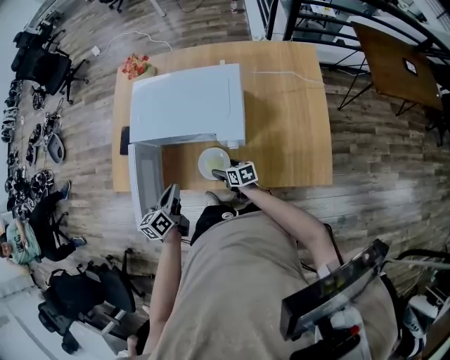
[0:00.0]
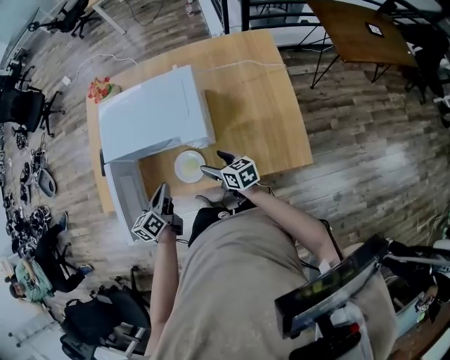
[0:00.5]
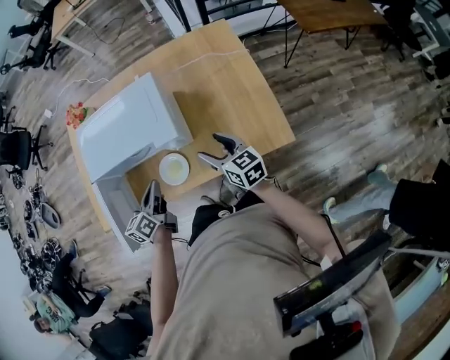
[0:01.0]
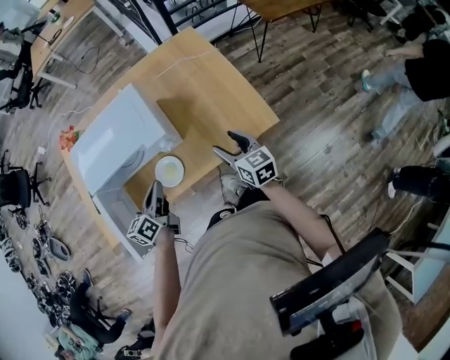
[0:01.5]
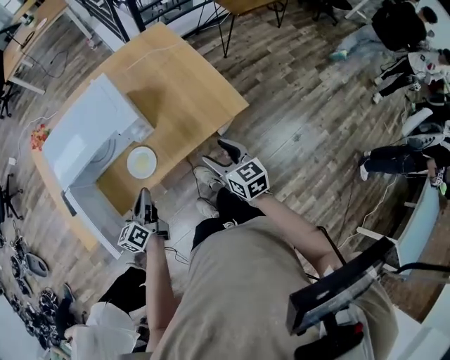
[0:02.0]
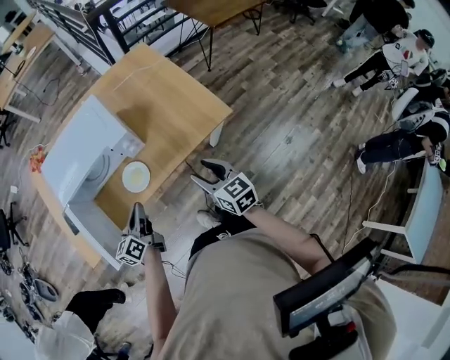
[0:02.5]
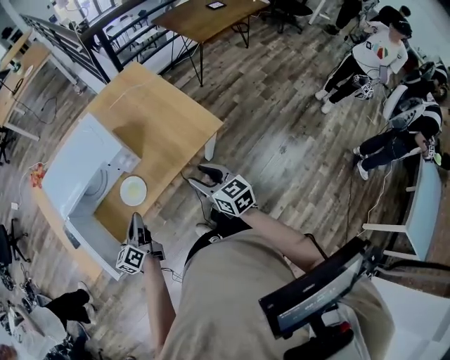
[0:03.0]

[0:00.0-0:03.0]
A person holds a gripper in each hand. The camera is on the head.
0:00.0 to 0:01.5: The right gripper ends up about 35 cm from where it was, and turns by about 40 degrees; the left gripper shifts by about 15 cm, and turns by roughly 30 degrees.
0:01.5 to 0:03.0: The right gripper heads backward, covering approximately 15 cm. The left gripper heads backward, covering about 10 cm.

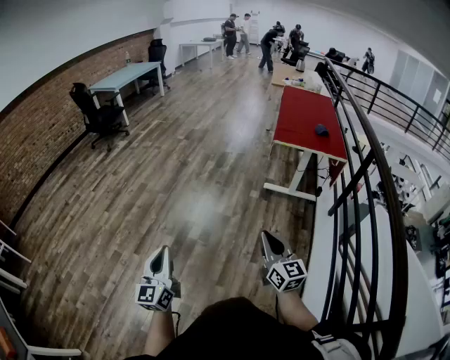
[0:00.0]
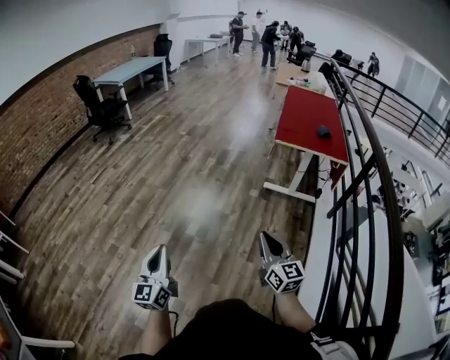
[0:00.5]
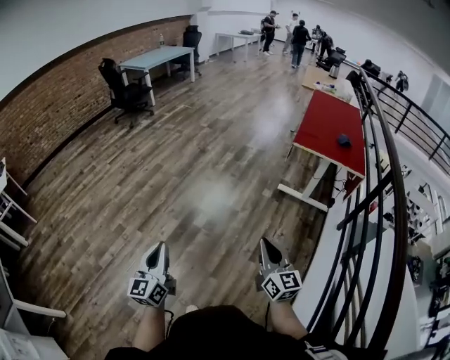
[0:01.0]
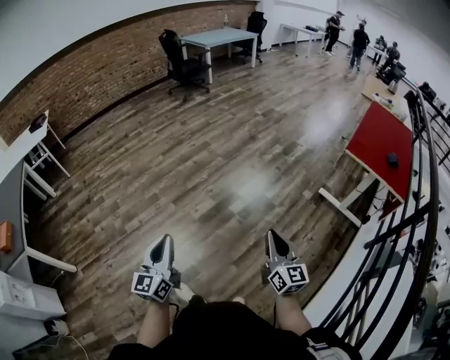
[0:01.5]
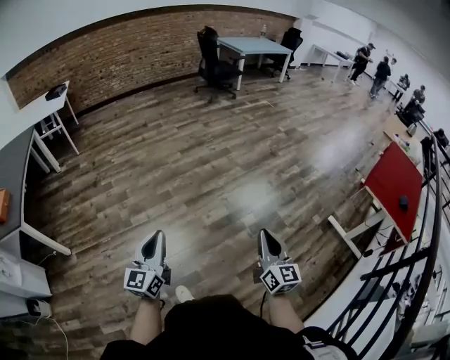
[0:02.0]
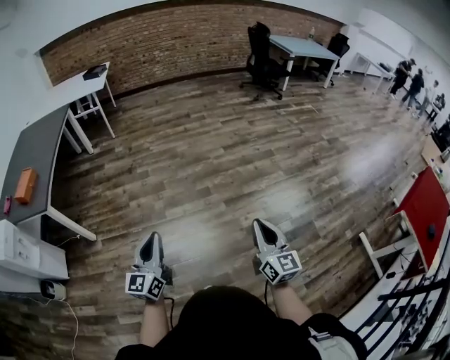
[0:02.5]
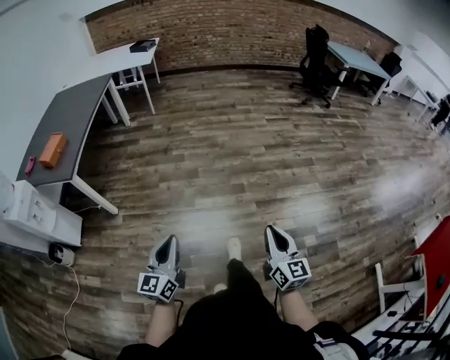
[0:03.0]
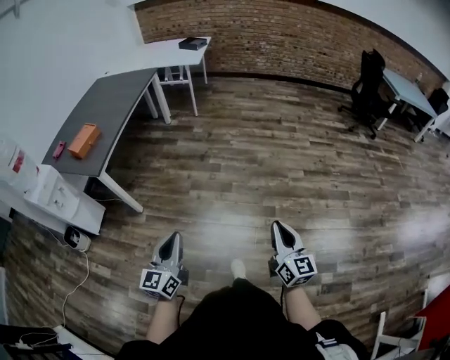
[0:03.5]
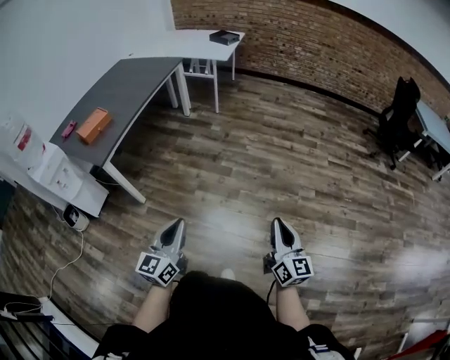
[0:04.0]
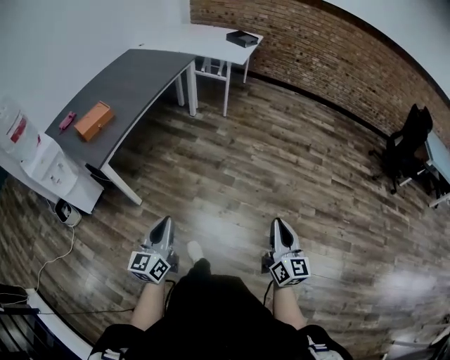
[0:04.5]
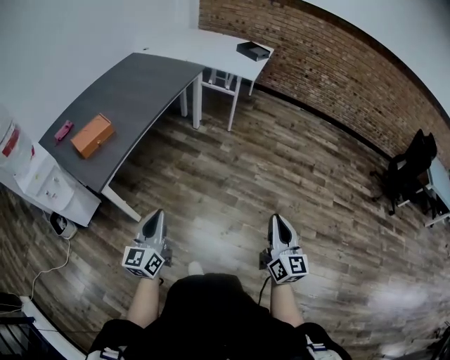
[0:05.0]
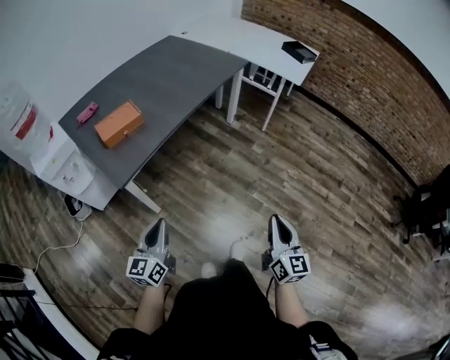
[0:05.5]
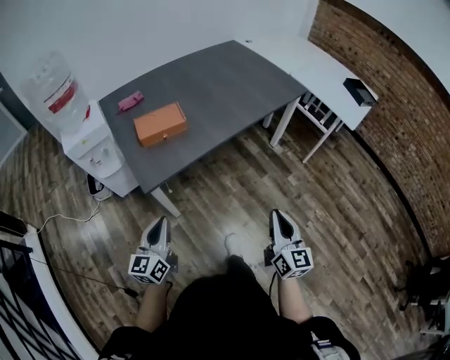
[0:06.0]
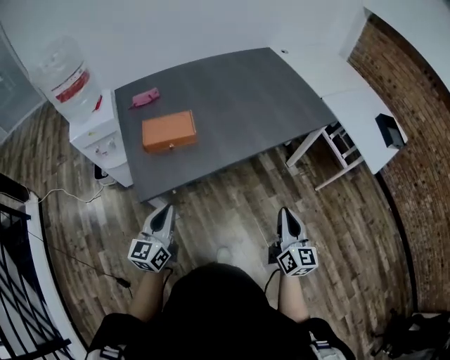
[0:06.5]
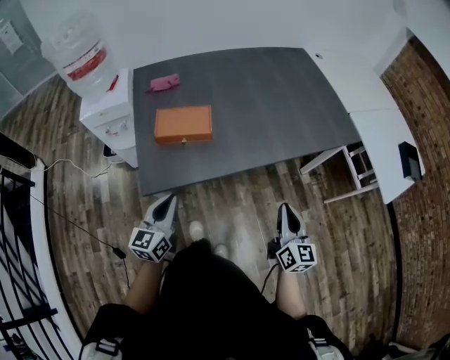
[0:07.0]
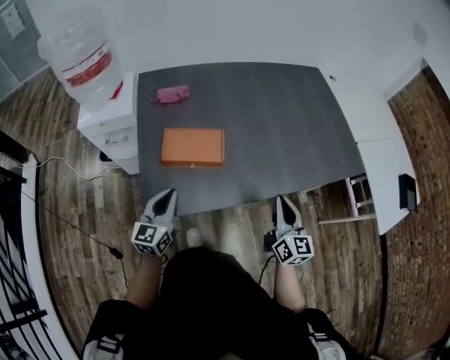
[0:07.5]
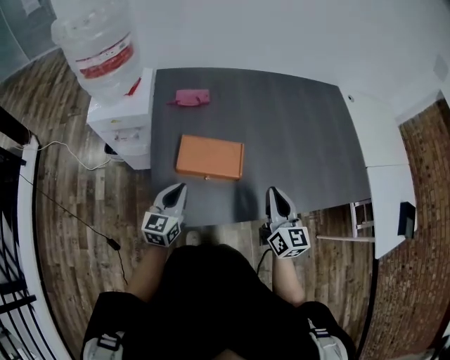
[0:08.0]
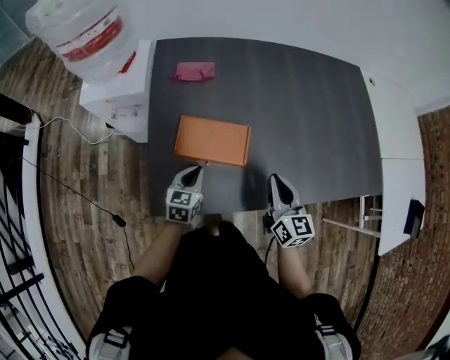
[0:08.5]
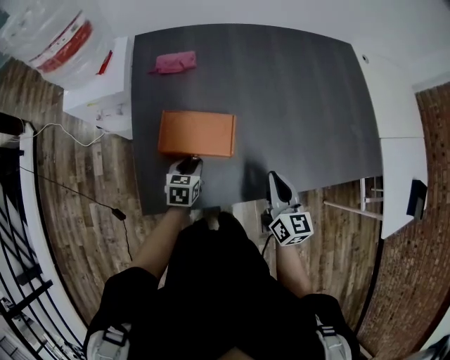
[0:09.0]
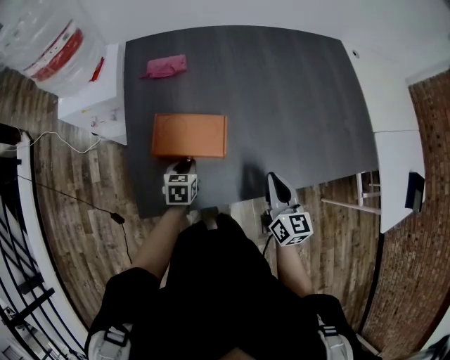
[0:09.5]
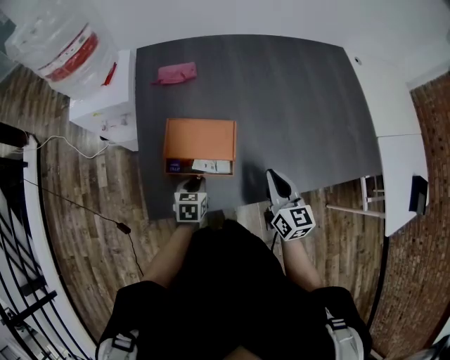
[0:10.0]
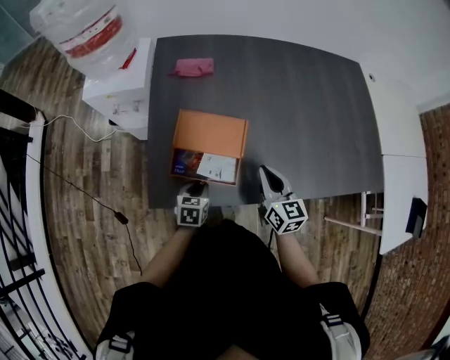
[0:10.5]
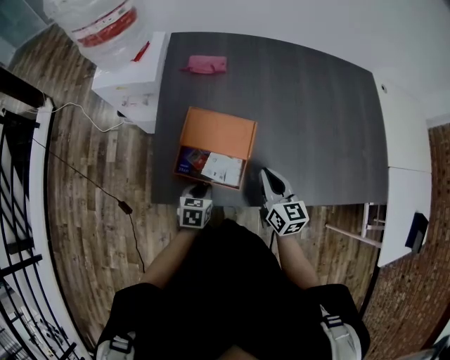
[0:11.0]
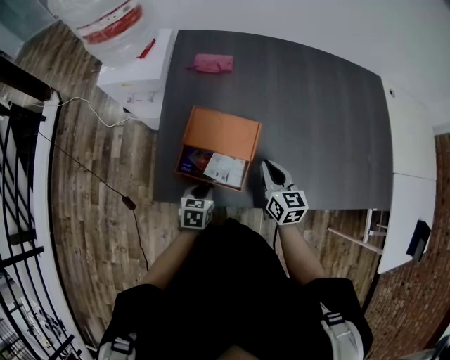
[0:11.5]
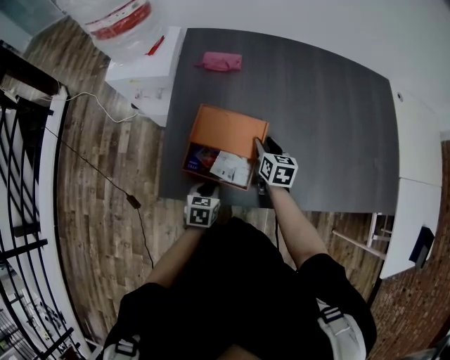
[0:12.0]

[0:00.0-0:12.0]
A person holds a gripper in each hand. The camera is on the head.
0:00.0 to 0:02.0: The right gripper moves some 25 cm, and rotates some 30 degrees; the left gripper shifts by about 25 cm, and changes its angle by approximately 30 degrees.
0:02.0 to 0:04.0: Both grippers are carried about 50 cm. The left gripper turns by roughly 40 degrees, while the right gripper swivels some 50 degrees.
0:04.0 to 0:06.0: The two grippers travel together, about 50 cm. The right gripper swivels about 40 degrees. The left gripper changes its angle by approximately 40 degrees.
0:06.0 to 0:08.0: The left gripper changes place by some 30 cm, and rotates roughly 20 degrees. The right gripper shifts by some 40 cm, and rotates some 30 degrees.
0:08.0 to 0:10.0: The right gripper travels downward by about 5 cm. Meanwhile the left gripper goes roughly 15 cm downward and to the right, and angles its fingers downward, by about 30 degrees.
0:10.0 to 0:12.0: The right gripper moves forward, downward and to the left, approximately 20 cm, swivels approximately 20 degrees, and opens up.

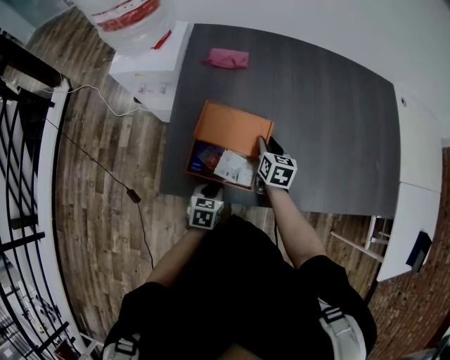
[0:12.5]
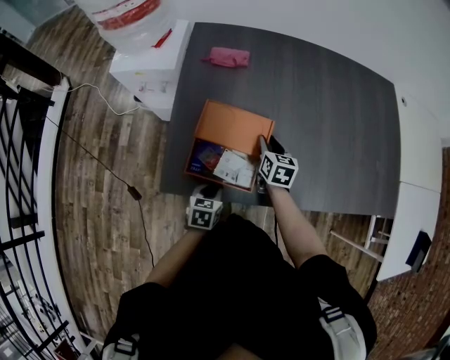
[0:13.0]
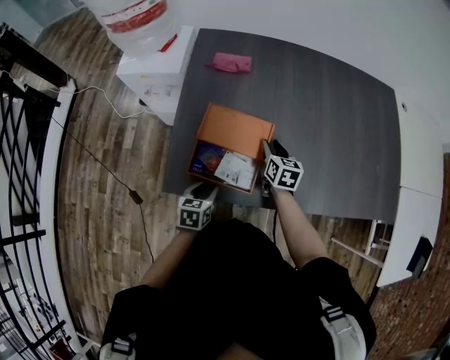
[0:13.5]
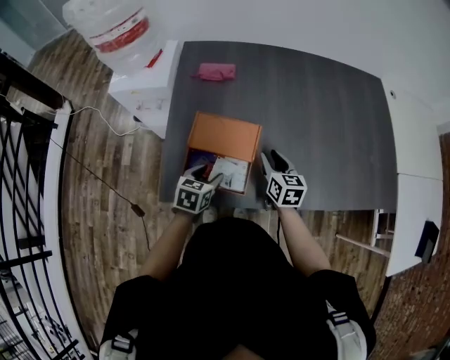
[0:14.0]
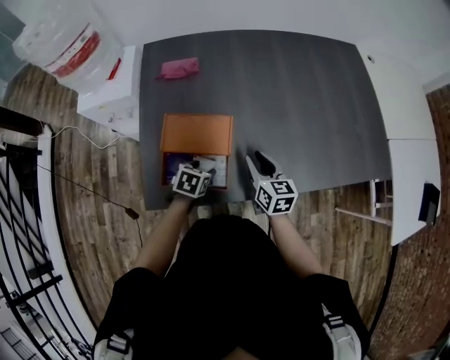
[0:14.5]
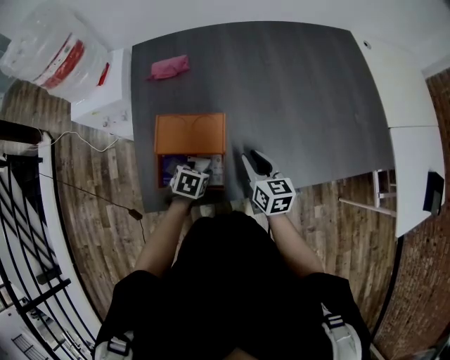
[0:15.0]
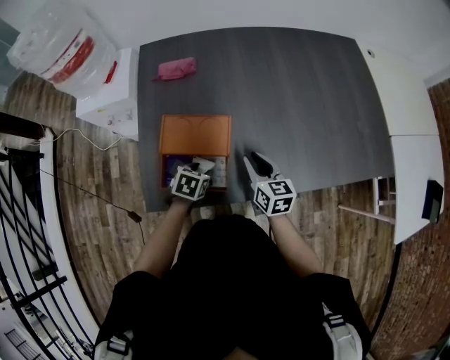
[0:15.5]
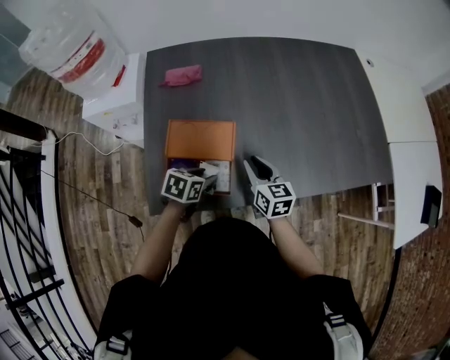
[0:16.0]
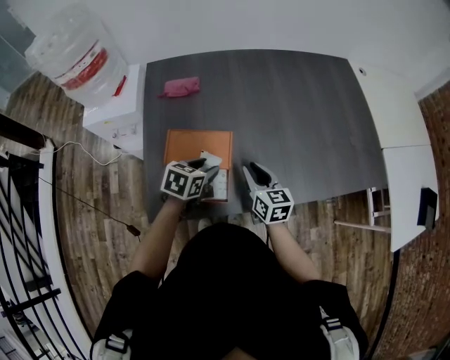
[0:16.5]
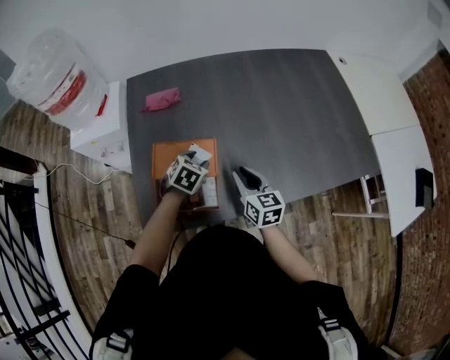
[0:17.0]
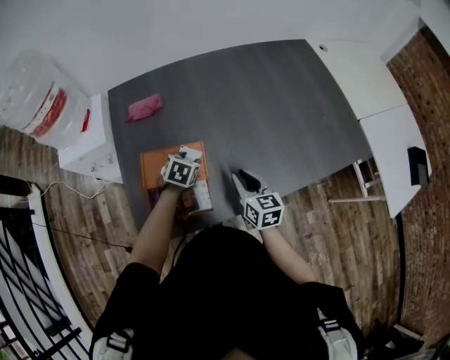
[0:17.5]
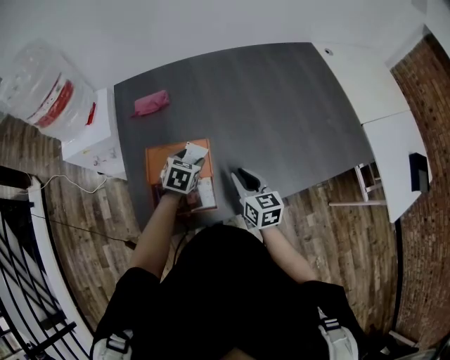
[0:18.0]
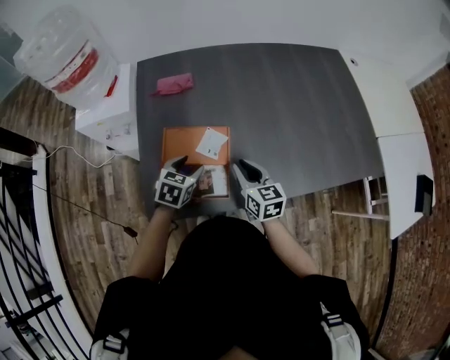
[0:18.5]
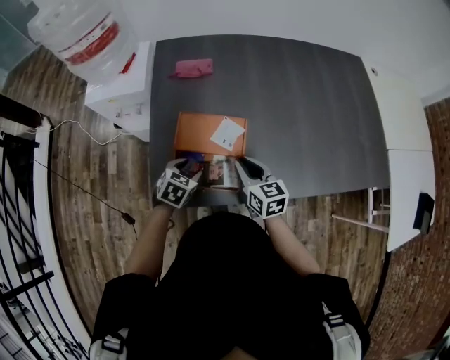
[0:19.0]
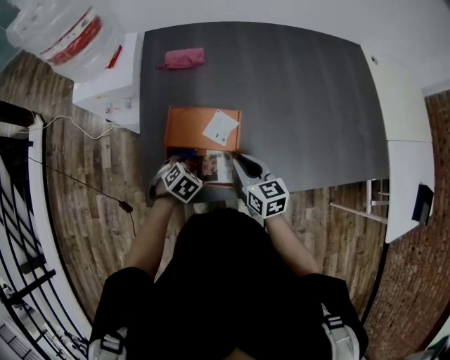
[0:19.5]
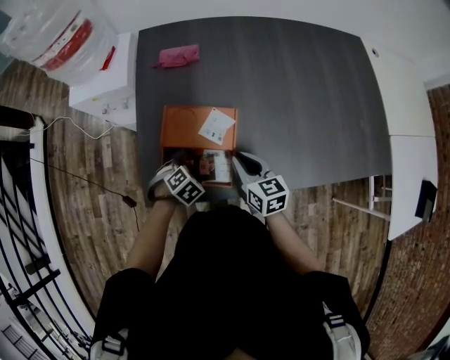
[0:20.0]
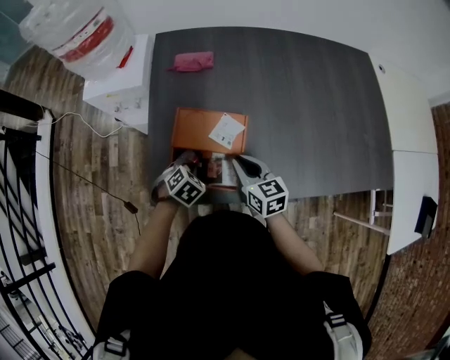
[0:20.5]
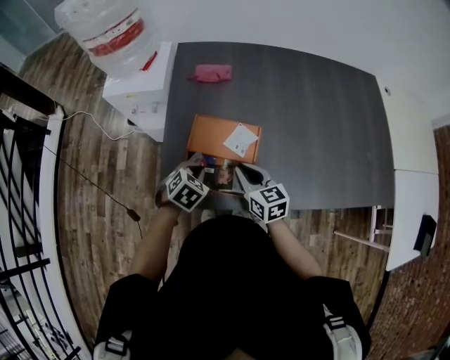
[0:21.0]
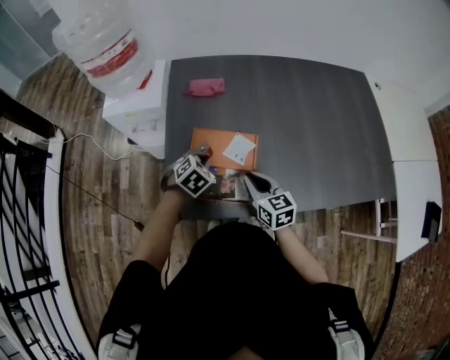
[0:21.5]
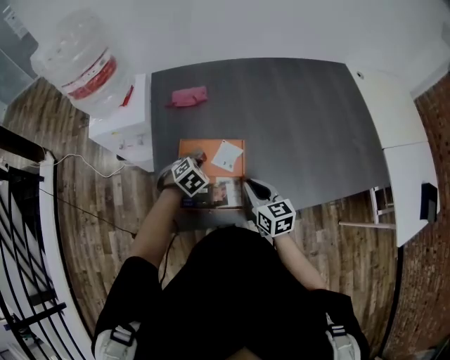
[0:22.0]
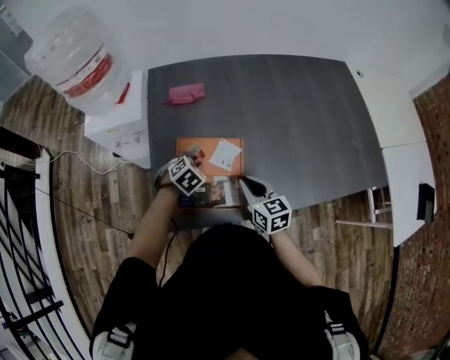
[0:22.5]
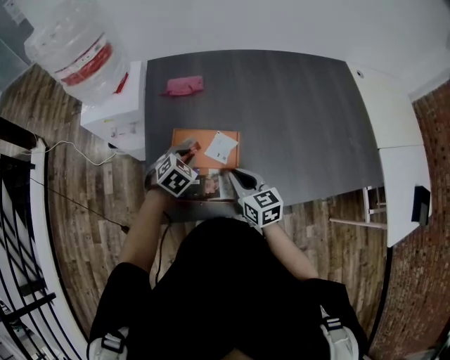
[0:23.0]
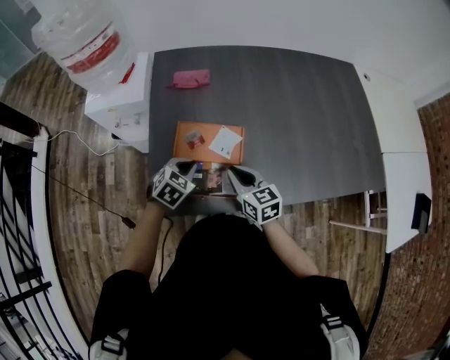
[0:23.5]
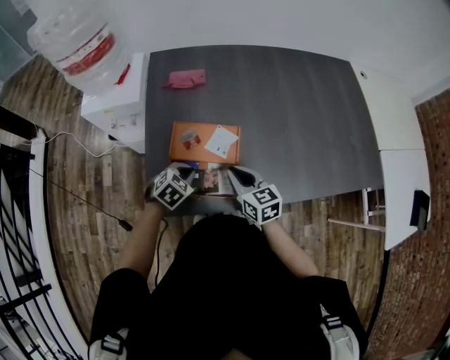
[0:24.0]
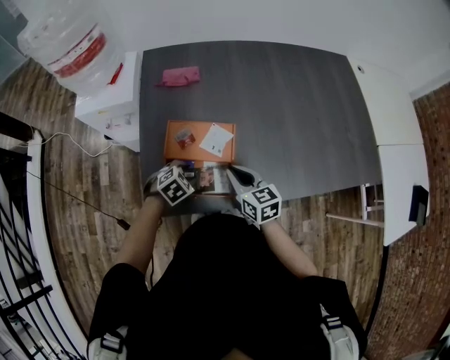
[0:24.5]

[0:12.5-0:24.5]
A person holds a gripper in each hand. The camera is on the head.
0:12.5 to 0:14.5: The right gripper heads backward, upward and to the right, covering about 10 cm. Meanwhile the left gripper moves forward, approximately 10 cm, changes its angle by about 20 degrees, and opens.
0:14.5 to 0:16.5: The left gripper heads upward, covering some 10 cm.
0:16.5 to 0:18.5: The left gripper travels forward and back again, about 10 cm each way.
0:18.5 to 0:20.5: The left gripper moves downward, about 10 cm, rotates some 30 degrees, and closes its fingers.
0:20.5 to 0:22.5: The left gripper is displaced forward by some 10 cm.
0:22.5 to 0:24.5: The left gripper is displaced backward by roughly 10 cm.
